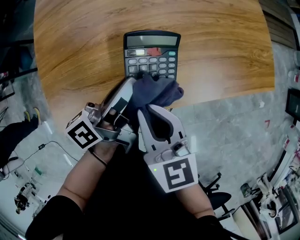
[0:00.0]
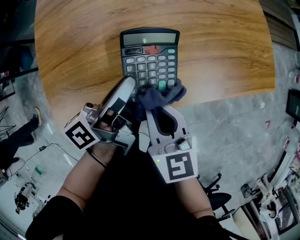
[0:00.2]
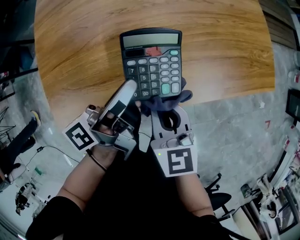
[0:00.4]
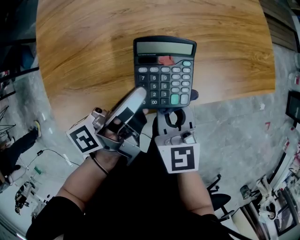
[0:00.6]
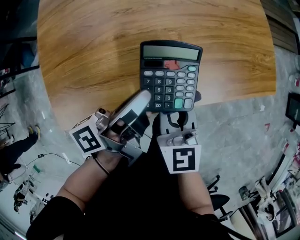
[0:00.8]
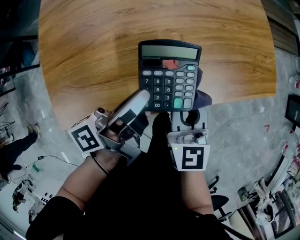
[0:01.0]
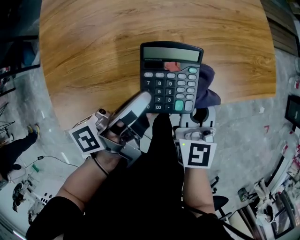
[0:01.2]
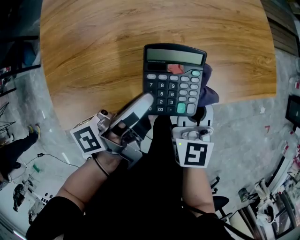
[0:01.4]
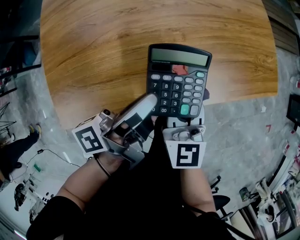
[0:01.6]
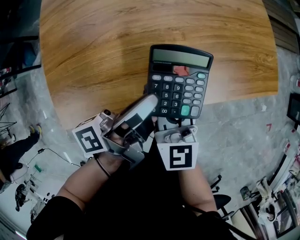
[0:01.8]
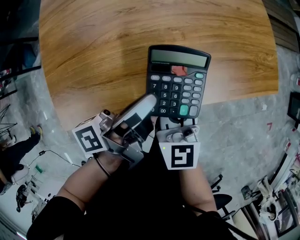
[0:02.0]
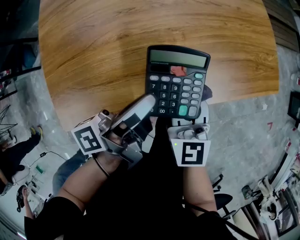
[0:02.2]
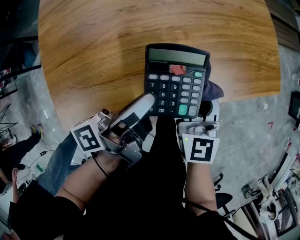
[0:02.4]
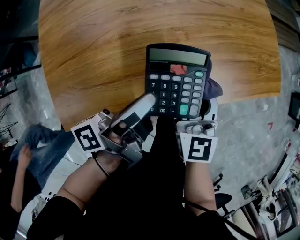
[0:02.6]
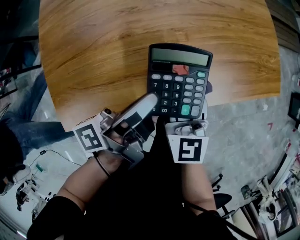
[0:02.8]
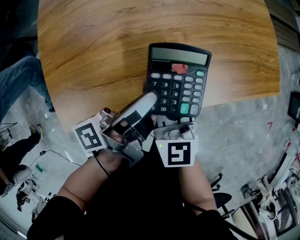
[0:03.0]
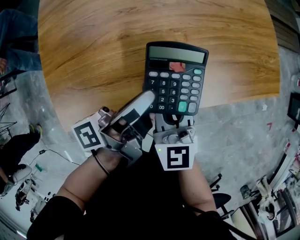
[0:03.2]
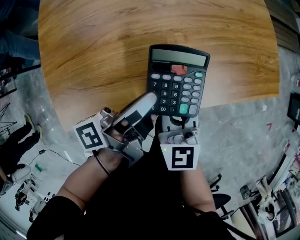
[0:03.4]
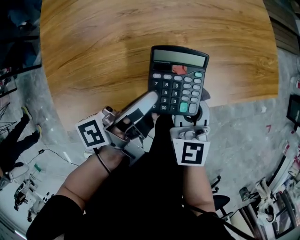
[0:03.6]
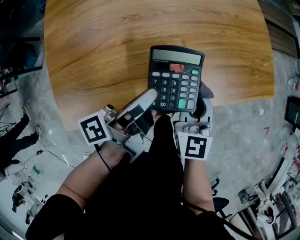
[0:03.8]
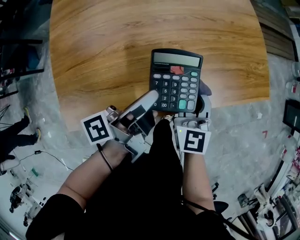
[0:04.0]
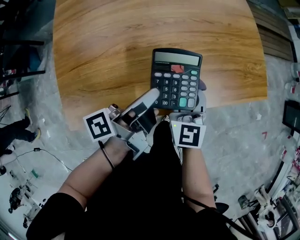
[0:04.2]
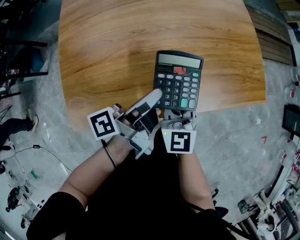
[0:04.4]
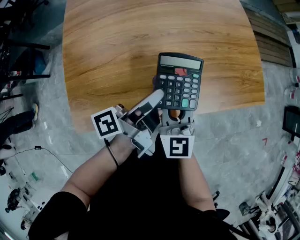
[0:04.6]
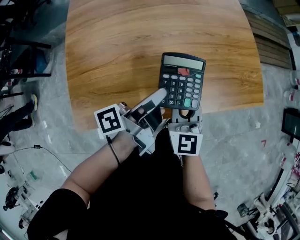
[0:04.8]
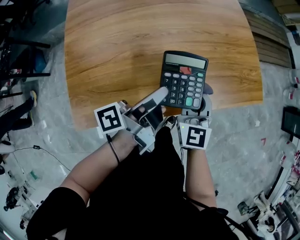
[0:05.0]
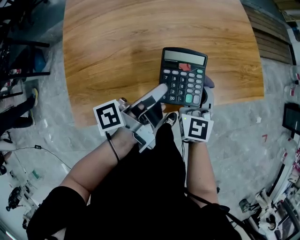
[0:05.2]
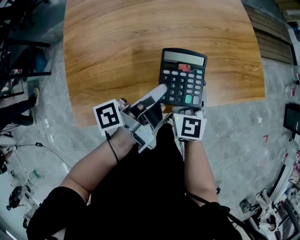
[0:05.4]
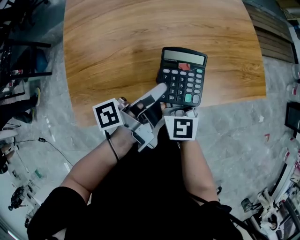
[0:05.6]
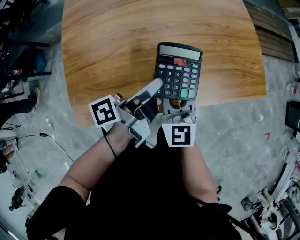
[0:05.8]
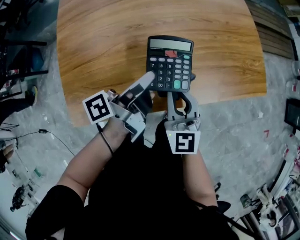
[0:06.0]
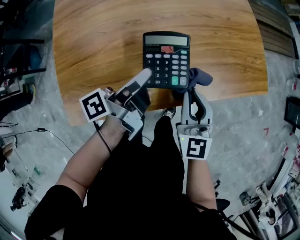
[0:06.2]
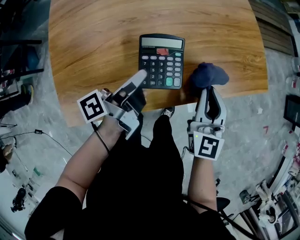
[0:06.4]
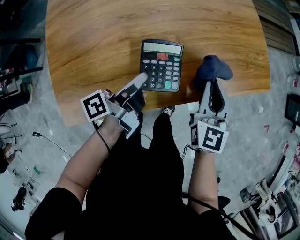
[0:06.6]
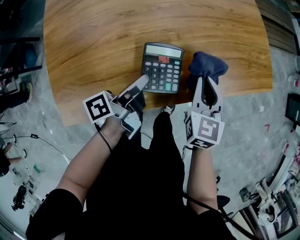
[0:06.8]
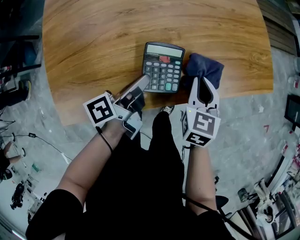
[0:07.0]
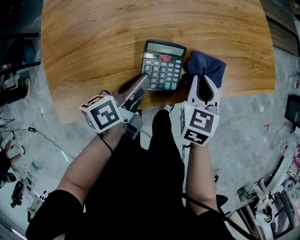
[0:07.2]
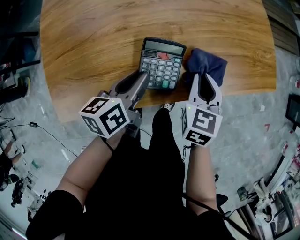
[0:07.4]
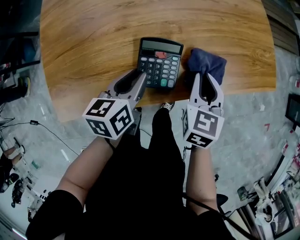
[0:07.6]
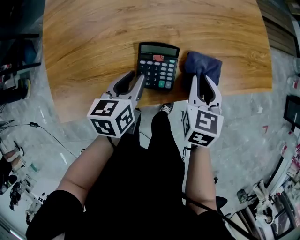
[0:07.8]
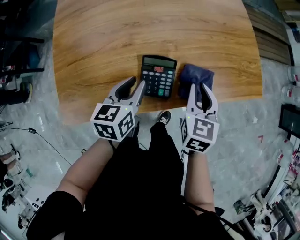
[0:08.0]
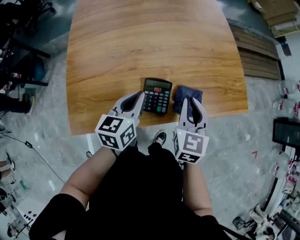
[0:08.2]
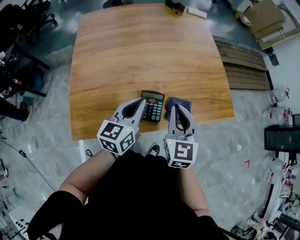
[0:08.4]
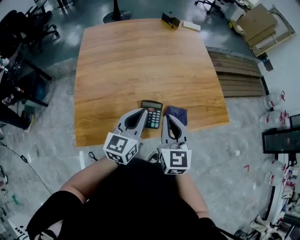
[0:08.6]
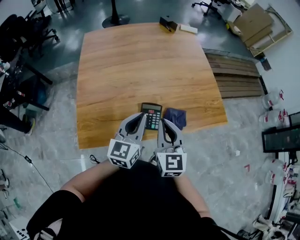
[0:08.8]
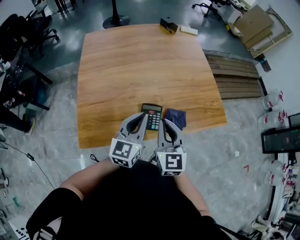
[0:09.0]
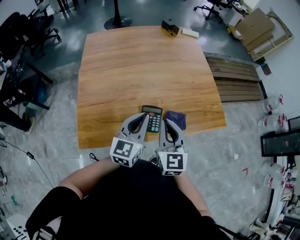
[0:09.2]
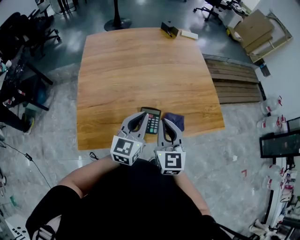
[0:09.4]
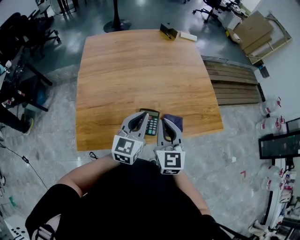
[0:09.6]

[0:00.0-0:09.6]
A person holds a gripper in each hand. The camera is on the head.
0:00.0 to 0:01.6: The right gripper shifts roughly 5 cm forward, and rotates some 20 degrees.
0:01.6 to 0:03.2: The right gripper travels to the right and back again, roughly 5 cm each way.
0:03.2 to 0:04.8: The grippers both shift upward by about 5 cm.
0:04.8 to 0:06.4: The right gripper swings left and right, some 15 cm each way, with 2 reversals, while the left gripper heads downward, covering about 5 cm.
0:06.4 to 0:08.0: The right gripper reaches about 10 cm downward, then returns, and swivels roughly 20 degrees. The left gripper goes downward and returns, some 10 cm each way, and rolls clockwise, seen from behind, by approximately 60 degrees.
0:08.0 to 0:09.6: Both grippers travel together upward, about 25 cm. The right gripper turns by approximately 30 degrees. The left gripper turns by about 30 degrees, and closes up.

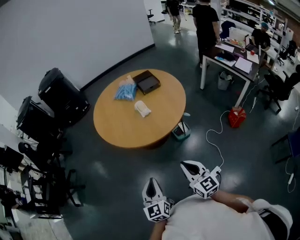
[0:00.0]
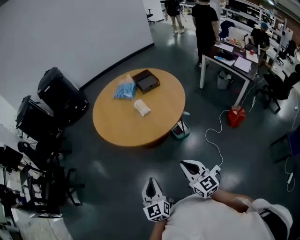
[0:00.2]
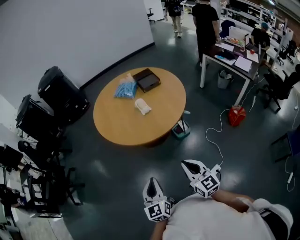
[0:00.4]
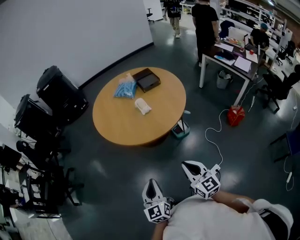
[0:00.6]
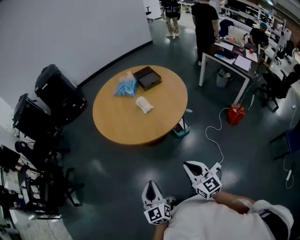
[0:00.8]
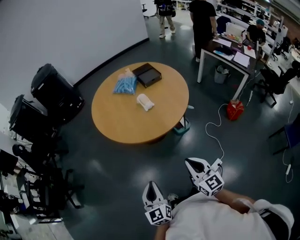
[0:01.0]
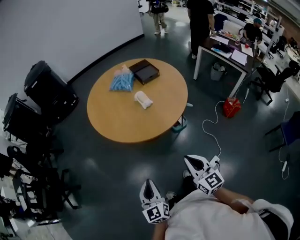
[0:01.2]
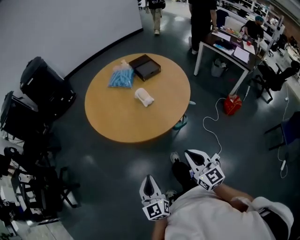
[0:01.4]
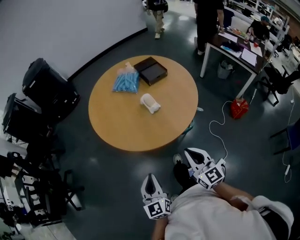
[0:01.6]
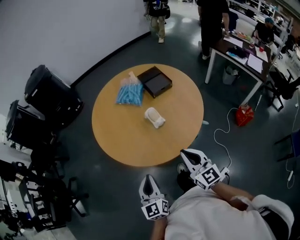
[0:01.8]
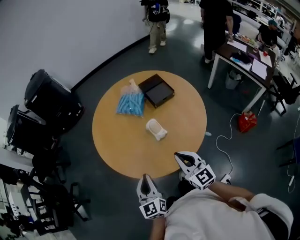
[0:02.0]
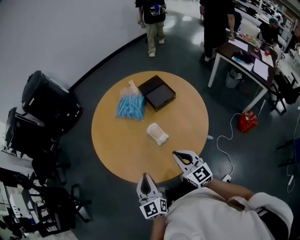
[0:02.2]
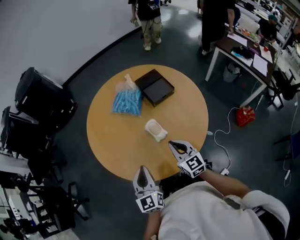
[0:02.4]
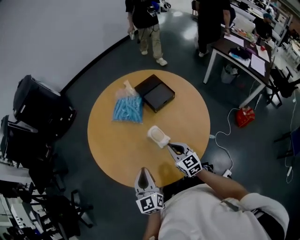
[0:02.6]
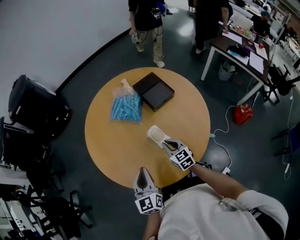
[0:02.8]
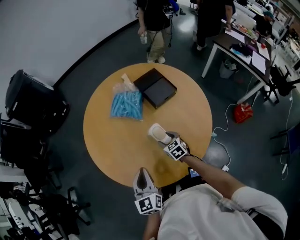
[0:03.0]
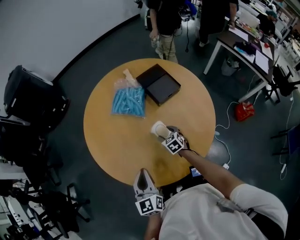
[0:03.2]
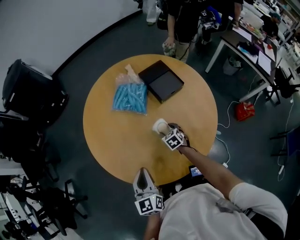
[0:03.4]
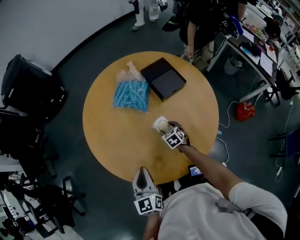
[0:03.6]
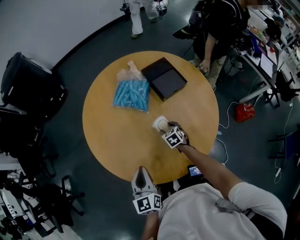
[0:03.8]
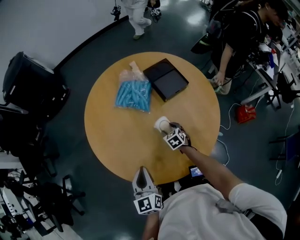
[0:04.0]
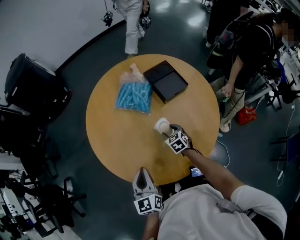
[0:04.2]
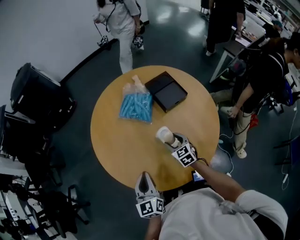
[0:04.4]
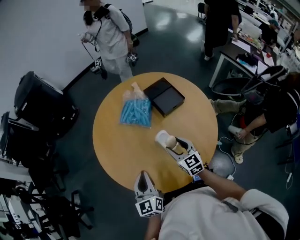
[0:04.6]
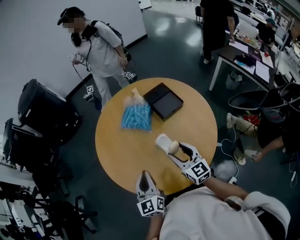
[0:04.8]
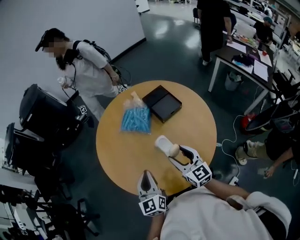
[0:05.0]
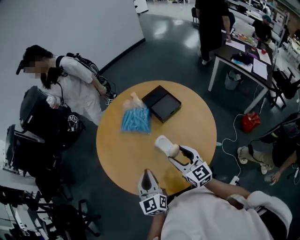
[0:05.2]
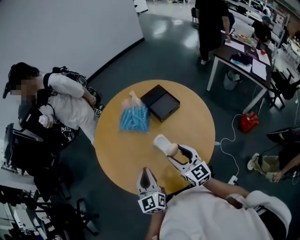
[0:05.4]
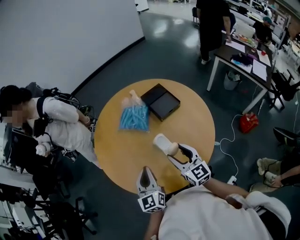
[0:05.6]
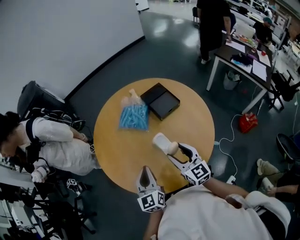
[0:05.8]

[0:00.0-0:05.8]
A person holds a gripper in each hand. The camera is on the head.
0:00.0 to 0:01.4: The left gripper goes some 15 cm to the left and forward; the right gripper travels forward and to the left by about 10 cm.
0:01.4 to 0:02.8: The pair of grippers is taken forward, approximately 40 cm. The right gripper changes its angle by roughly 20 degrees.
0:02.8 to 0:04.4: The right gripper moves some 15 cm downward and comes back, and opens.
0:04.4 to 0:05.8: The right gripper goes roughly 20 cm upward and backward, and changes its angle by some 30 degrees. The left gripper moves roughly 5 cm.

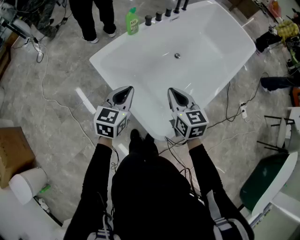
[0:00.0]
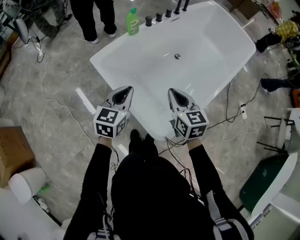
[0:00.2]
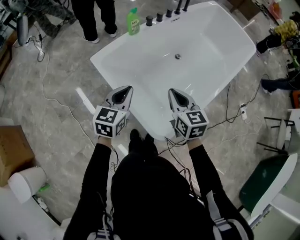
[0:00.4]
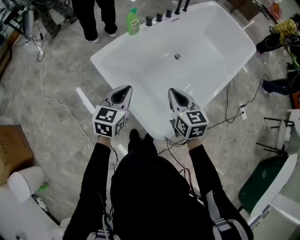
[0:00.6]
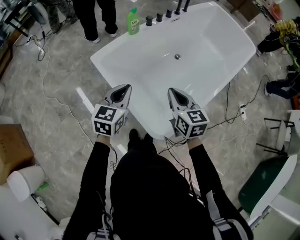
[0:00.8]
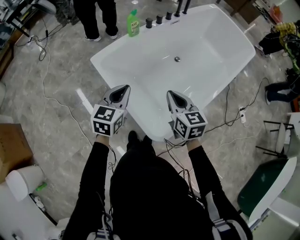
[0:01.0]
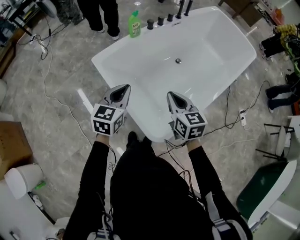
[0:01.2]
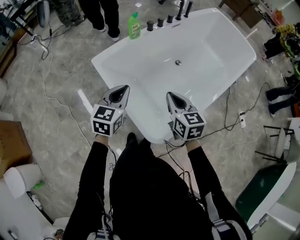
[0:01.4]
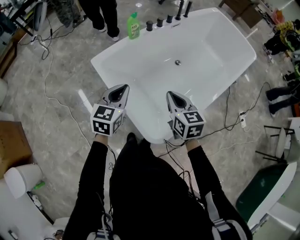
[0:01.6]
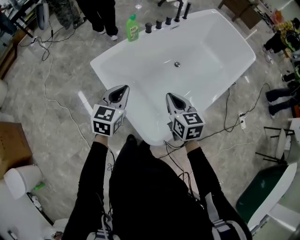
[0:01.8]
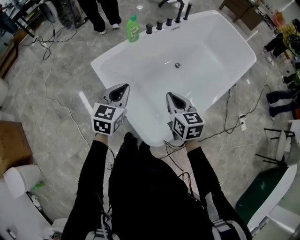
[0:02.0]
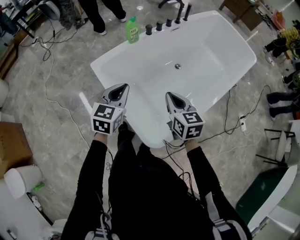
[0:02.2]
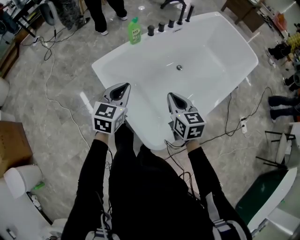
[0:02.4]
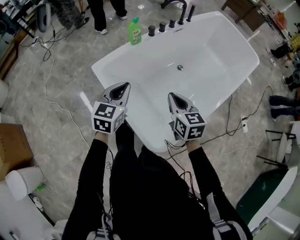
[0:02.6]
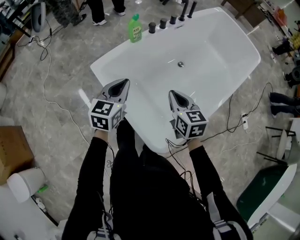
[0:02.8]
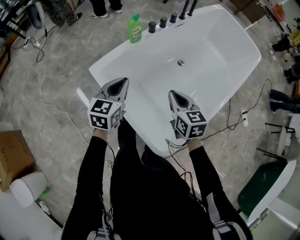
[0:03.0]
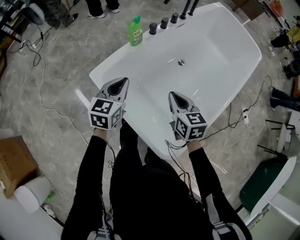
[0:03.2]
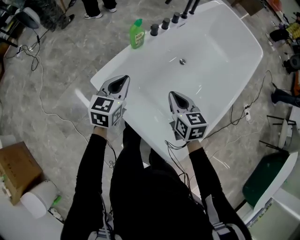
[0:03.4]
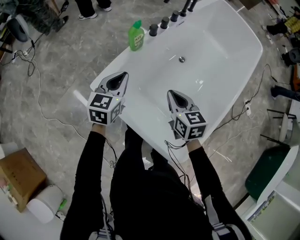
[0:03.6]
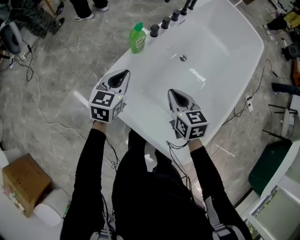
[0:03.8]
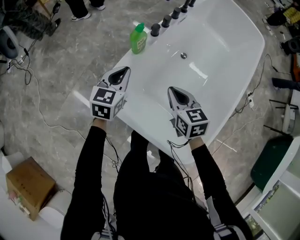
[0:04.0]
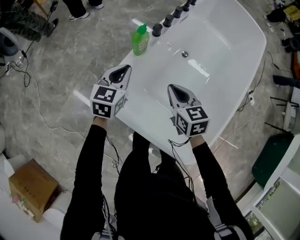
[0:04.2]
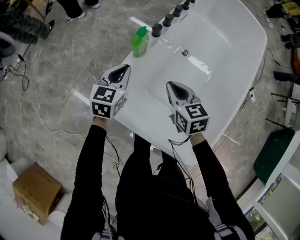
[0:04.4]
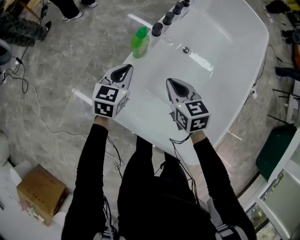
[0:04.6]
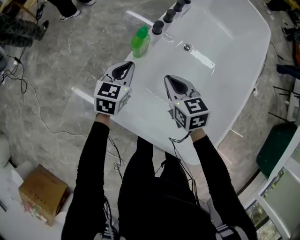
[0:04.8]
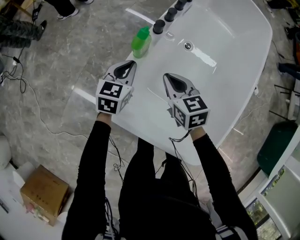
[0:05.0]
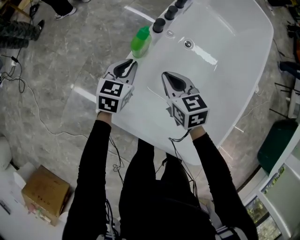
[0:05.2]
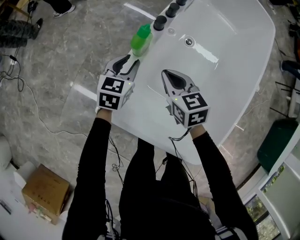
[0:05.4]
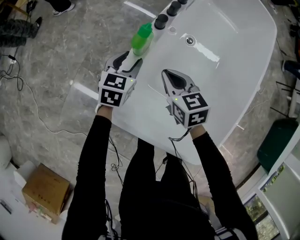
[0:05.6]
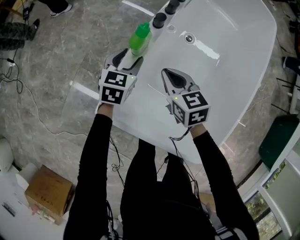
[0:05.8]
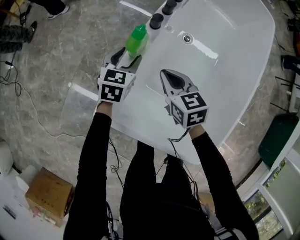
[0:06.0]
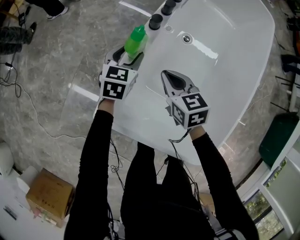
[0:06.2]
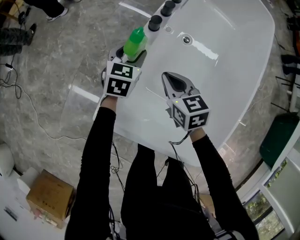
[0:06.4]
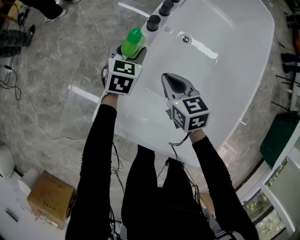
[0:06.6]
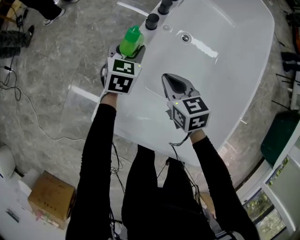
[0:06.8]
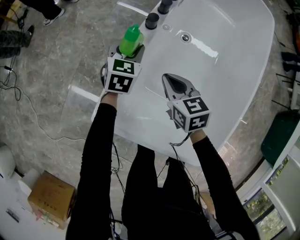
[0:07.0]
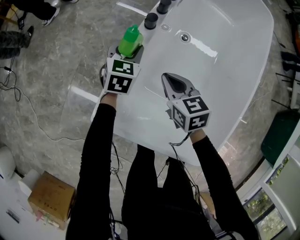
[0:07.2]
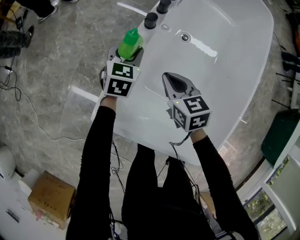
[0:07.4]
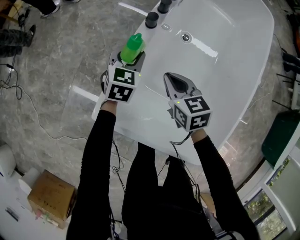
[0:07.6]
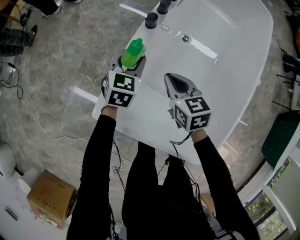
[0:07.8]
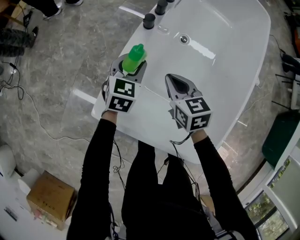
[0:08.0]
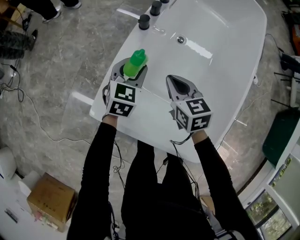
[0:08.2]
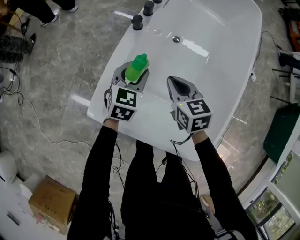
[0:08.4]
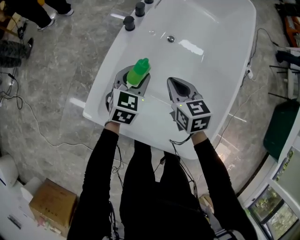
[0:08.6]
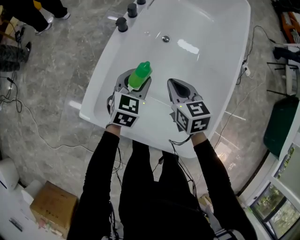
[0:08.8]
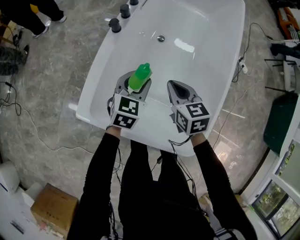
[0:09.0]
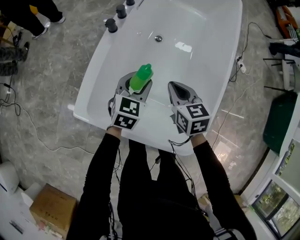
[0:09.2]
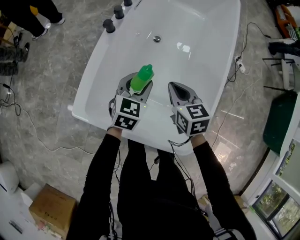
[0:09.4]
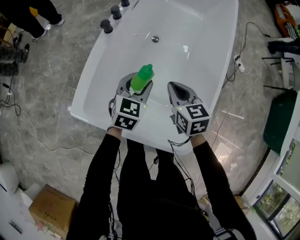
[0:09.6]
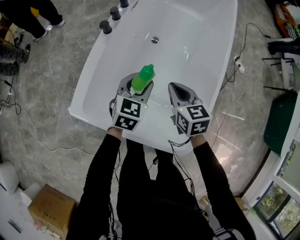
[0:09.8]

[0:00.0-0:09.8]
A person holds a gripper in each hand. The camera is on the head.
0:00.0 to 0:01.4: There are only small adjustments of the grippers.
0:01.4 to 0:02.8: Both grippers travel together forward, approximately 10 cm.
0:02.8 to 0:04.2: The two grippers go about 25 cm forward and to the left.
0:04.2 to 0:05.6: The left gripper moves downward and forward, about 15 cm, and opens up; the right gripper travels forward and downward by some 10 cm.
0:05.6 to 0:07.0: The left gripper heads forward, covering some 5 cm.
0:07.0 to 0:08.4: The right gripper shifts about 5 cm to the right. Meanwhile the left gripper goes roughly 15 cm backward, to the right and upward.
0:08.4 to 0:09.8: The grippers both shift to the right and backward by roughly 15 cm.
